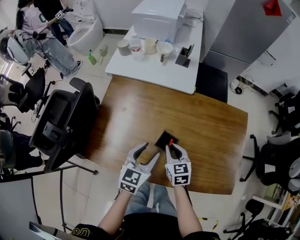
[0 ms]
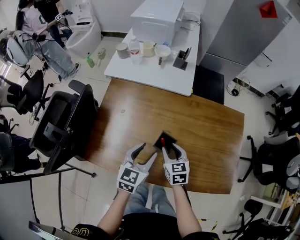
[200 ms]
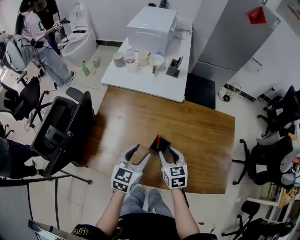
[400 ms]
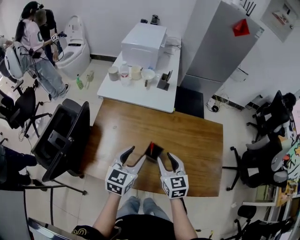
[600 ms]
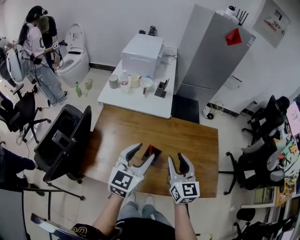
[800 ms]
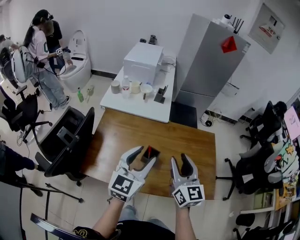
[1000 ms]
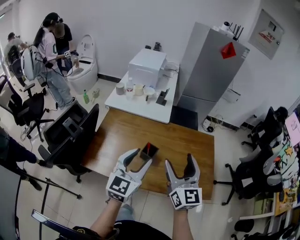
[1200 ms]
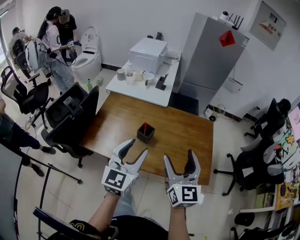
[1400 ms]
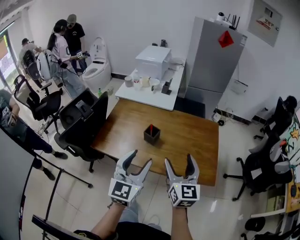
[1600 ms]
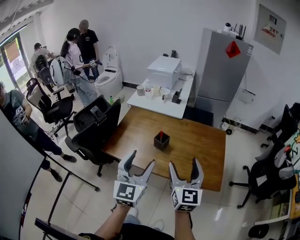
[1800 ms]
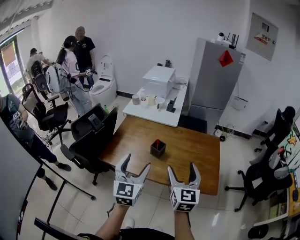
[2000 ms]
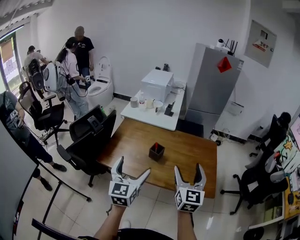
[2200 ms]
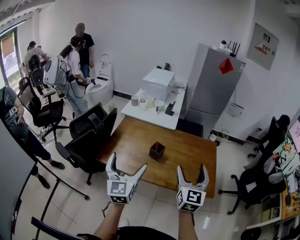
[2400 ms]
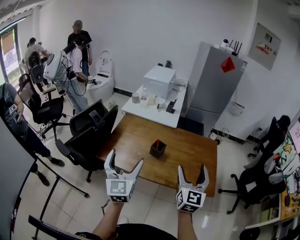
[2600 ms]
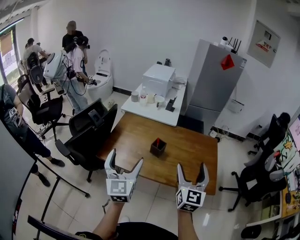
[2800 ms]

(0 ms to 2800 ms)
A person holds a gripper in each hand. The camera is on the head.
0 ms - 1400 ms: Both grippers move upward and backward, roughly 35 cm. The right gripper angles its fingers upward, by roughly 40 degrees, and opens its fingers; the left gripper changes its angle by some 30 degrees.
1400 ms - 2800 ms: The right gripper moves backward, roughly 5 cm. The left gripper moves to the left and backward, about 15 cm, rotates about 20 degrees, and opens its fingers.

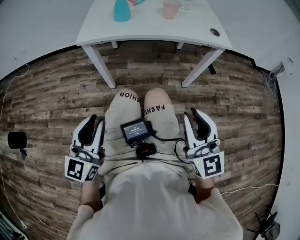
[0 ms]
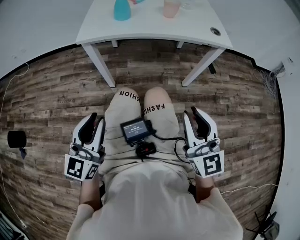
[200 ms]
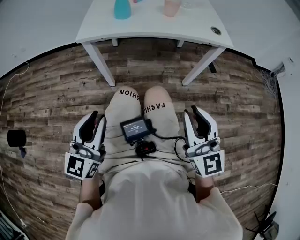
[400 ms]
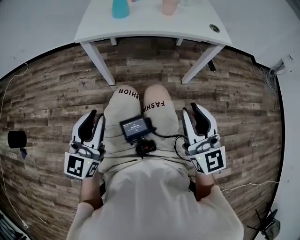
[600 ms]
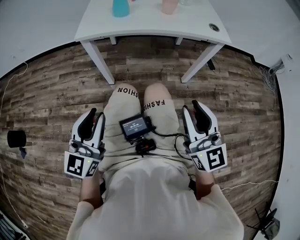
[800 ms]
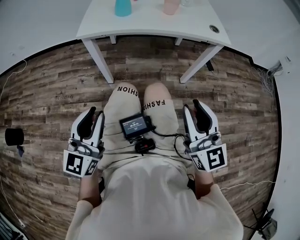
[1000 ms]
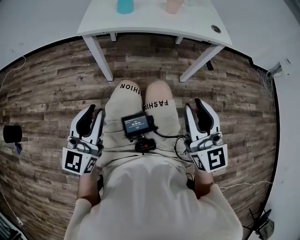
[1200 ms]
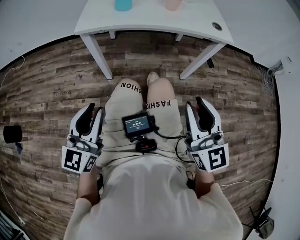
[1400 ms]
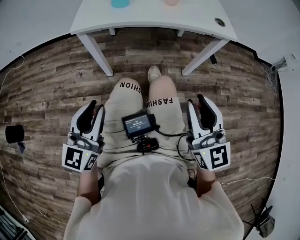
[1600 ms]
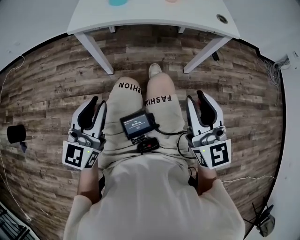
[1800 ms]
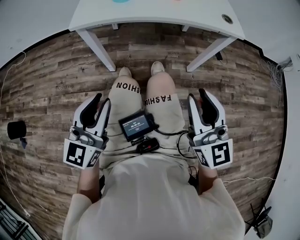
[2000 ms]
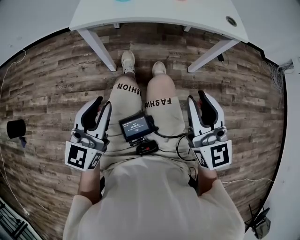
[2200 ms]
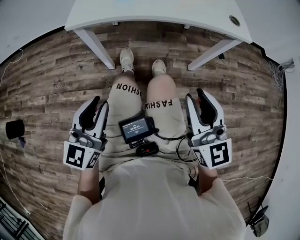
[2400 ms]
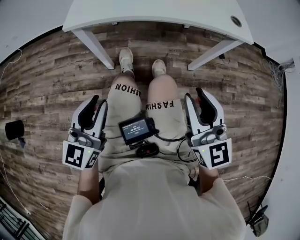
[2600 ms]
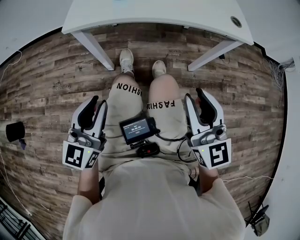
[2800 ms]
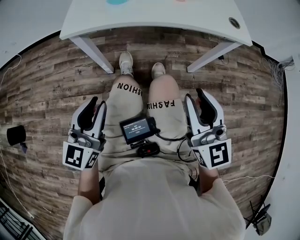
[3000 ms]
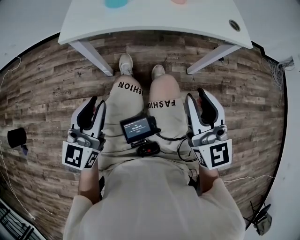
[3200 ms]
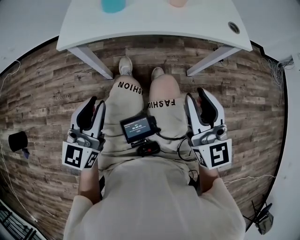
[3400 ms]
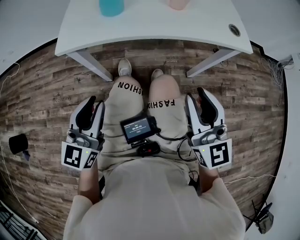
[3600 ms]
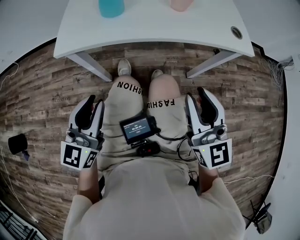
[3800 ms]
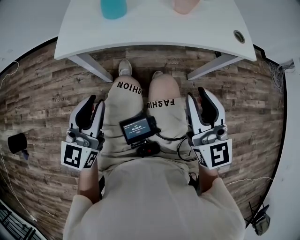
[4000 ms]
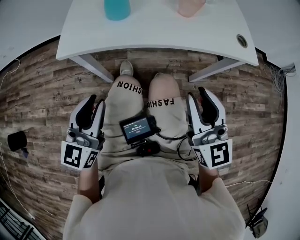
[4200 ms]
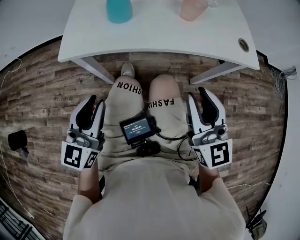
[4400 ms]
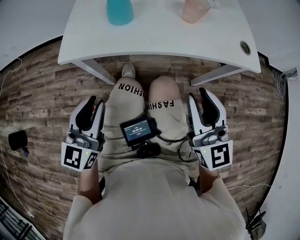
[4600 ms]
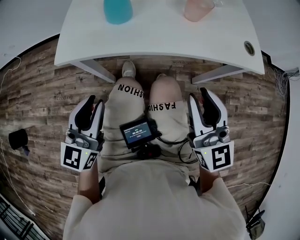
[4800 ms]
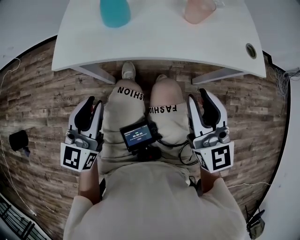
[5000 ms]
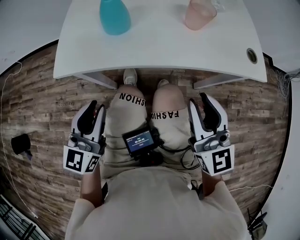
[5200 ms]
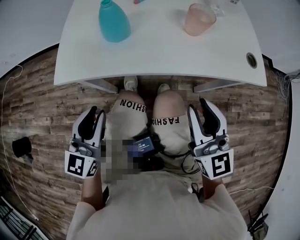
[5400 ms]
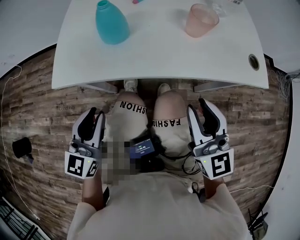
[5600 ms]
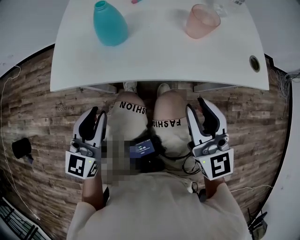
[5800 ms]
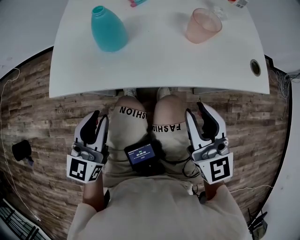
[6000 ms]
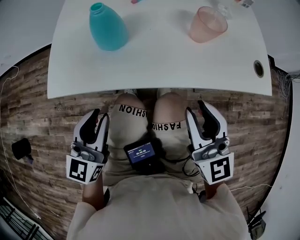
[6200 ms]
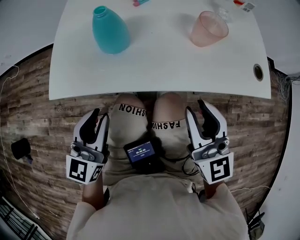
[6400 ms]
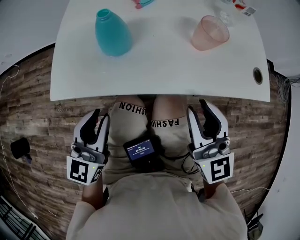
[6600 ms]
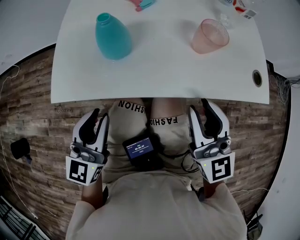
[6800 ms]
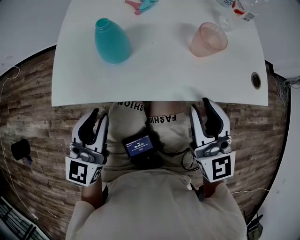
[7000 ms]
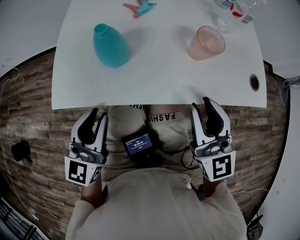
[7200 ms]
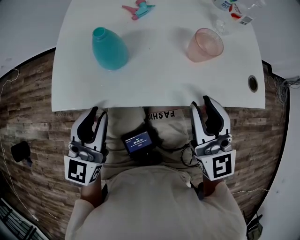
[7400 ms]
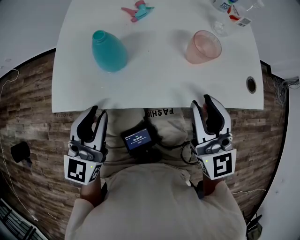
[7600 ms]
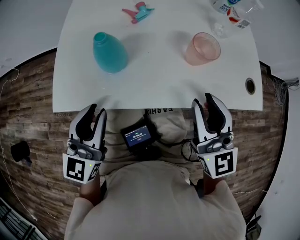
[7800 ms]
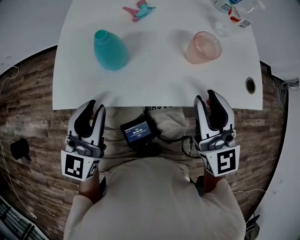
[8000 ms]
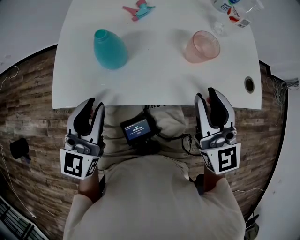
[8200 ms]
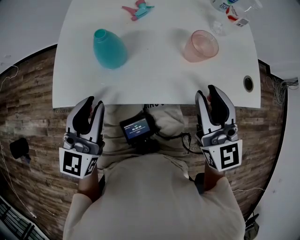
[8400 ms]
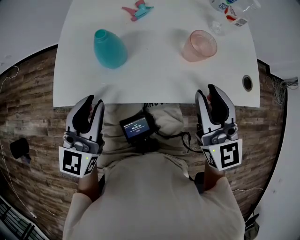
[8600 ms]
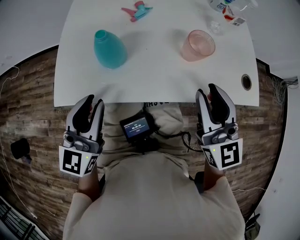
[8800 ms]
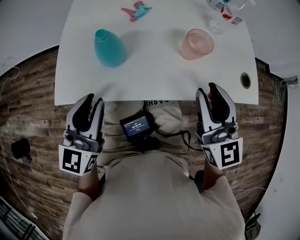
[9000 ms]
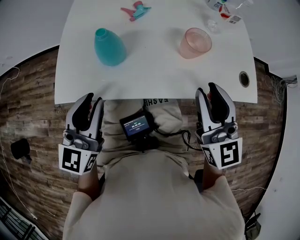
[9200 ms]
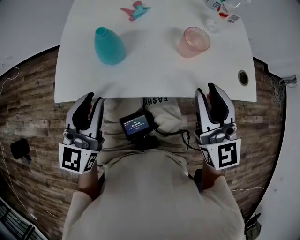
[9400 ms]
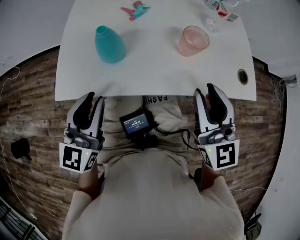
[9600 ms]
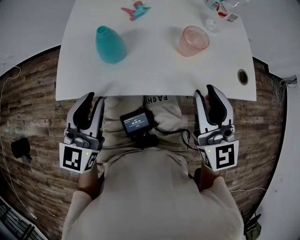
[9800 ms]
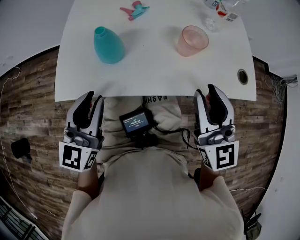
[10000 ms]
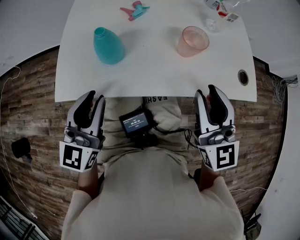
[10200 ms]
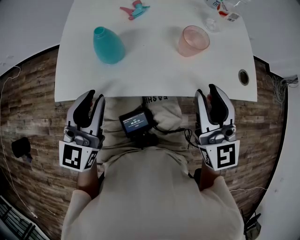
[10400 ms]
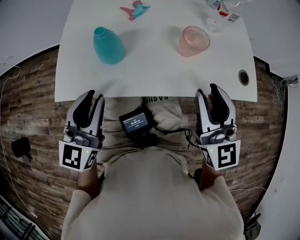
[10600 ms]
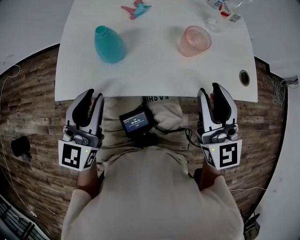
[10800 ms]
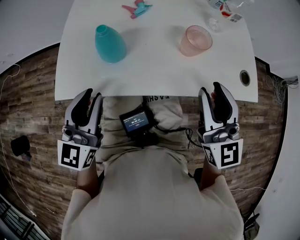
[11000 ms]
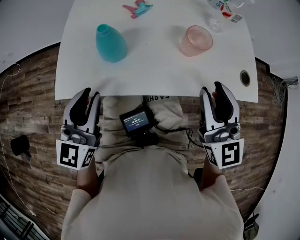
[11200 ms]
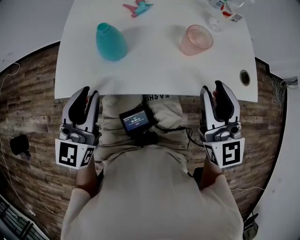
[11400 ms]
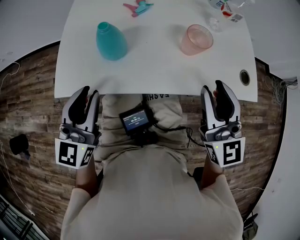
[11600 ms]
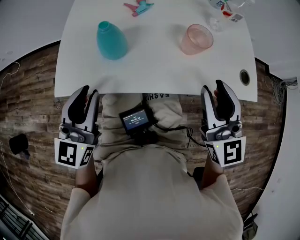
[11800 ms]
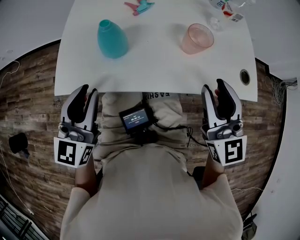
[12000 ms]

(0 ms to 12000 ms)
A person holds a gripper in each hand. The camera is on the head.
0 ms - 1600 ms: The grippers make only small movements.
1600 ms - 3000 ms: The two grippers go some 10 cm forward.
3000 ms - 4400 ms: The two grippers go approximately 15 cm forward.
4400 ms - 6000 ms: The two grippers go approximately 10 cm forward.
6000 ms - 7600 ms: Both grippers travel together forward, some 5 cm.
7600 ms - 12000 ms: The grippers move only a little.

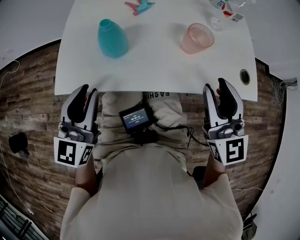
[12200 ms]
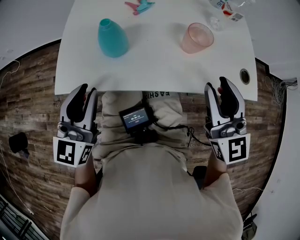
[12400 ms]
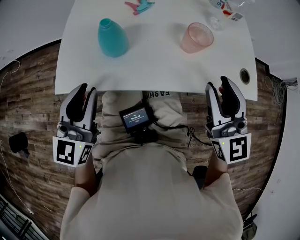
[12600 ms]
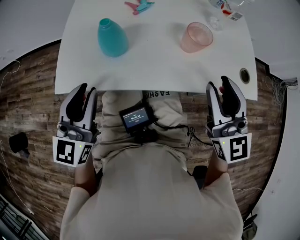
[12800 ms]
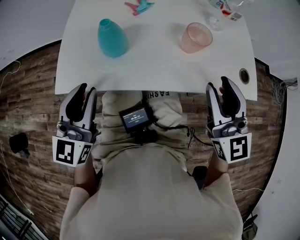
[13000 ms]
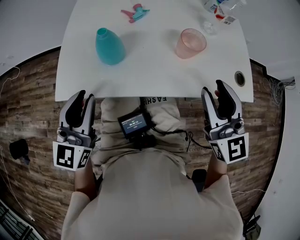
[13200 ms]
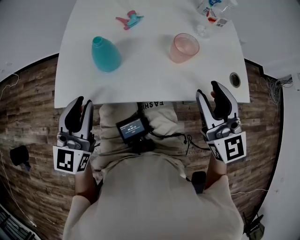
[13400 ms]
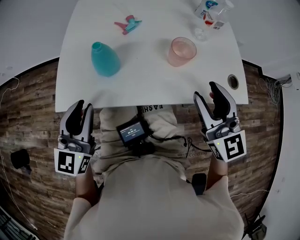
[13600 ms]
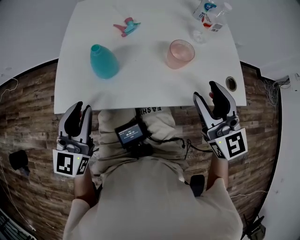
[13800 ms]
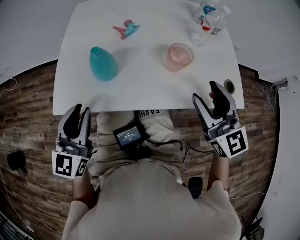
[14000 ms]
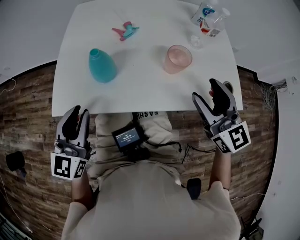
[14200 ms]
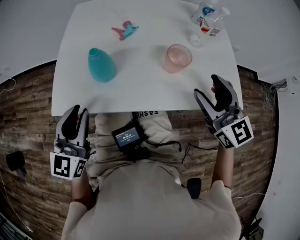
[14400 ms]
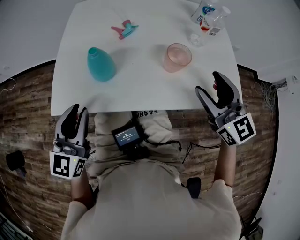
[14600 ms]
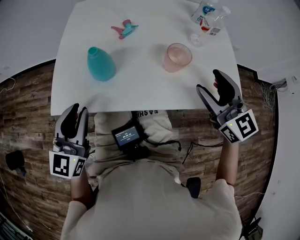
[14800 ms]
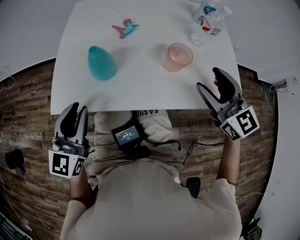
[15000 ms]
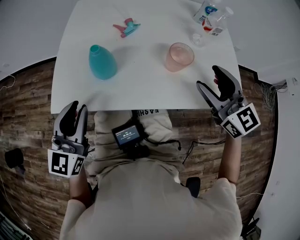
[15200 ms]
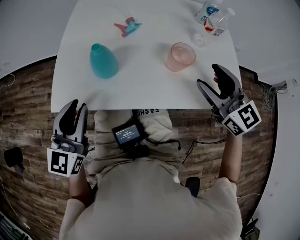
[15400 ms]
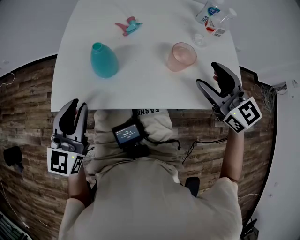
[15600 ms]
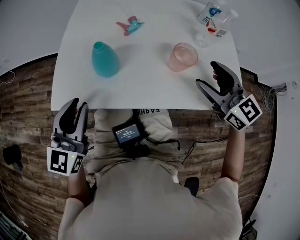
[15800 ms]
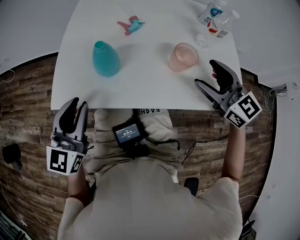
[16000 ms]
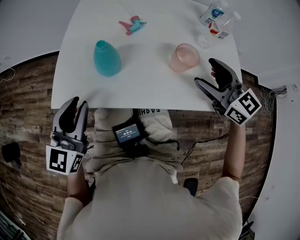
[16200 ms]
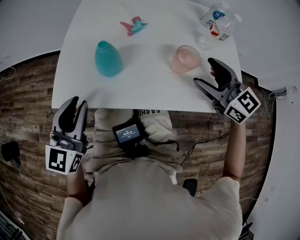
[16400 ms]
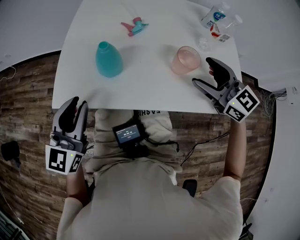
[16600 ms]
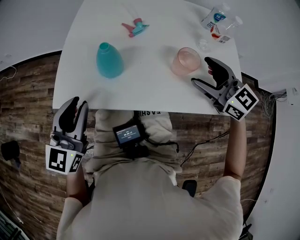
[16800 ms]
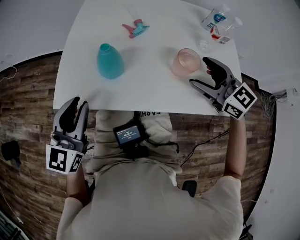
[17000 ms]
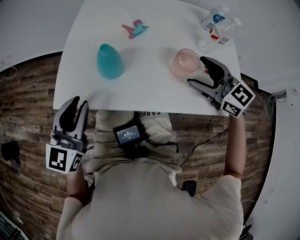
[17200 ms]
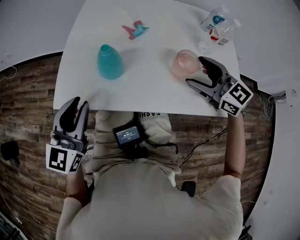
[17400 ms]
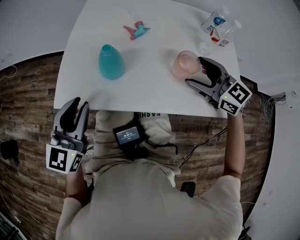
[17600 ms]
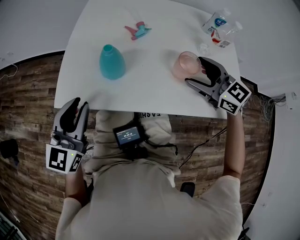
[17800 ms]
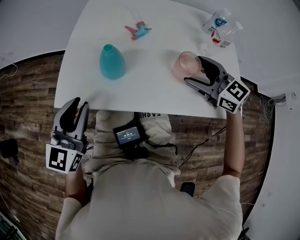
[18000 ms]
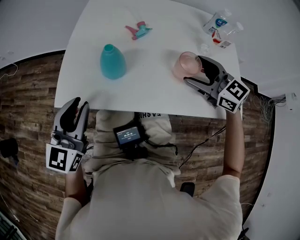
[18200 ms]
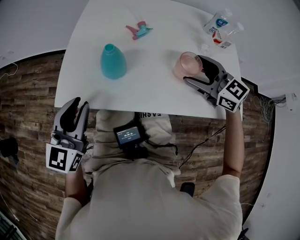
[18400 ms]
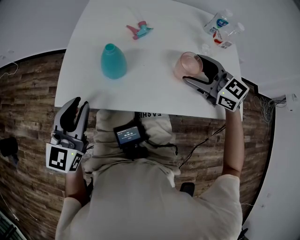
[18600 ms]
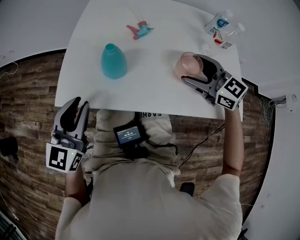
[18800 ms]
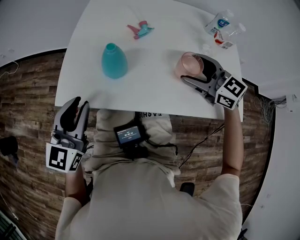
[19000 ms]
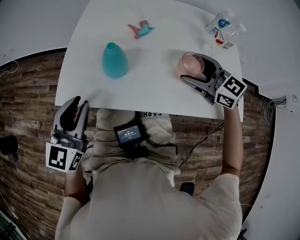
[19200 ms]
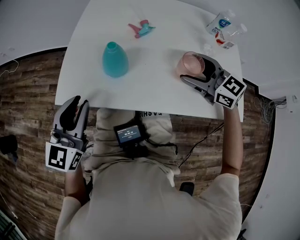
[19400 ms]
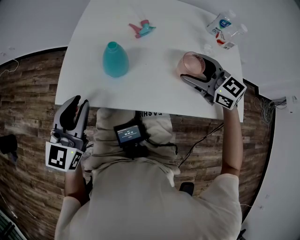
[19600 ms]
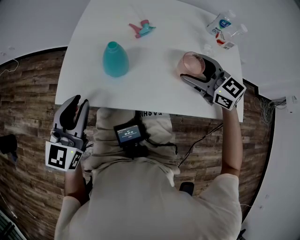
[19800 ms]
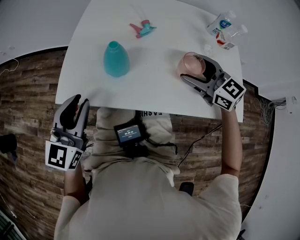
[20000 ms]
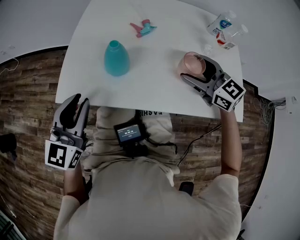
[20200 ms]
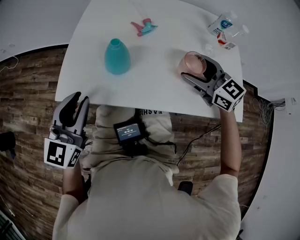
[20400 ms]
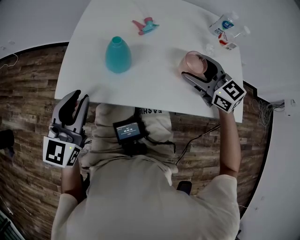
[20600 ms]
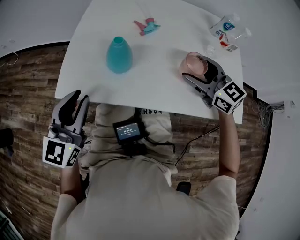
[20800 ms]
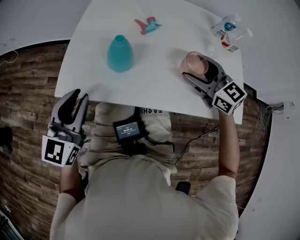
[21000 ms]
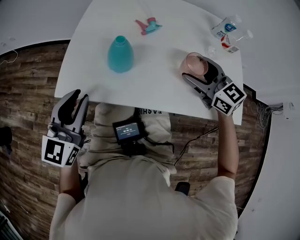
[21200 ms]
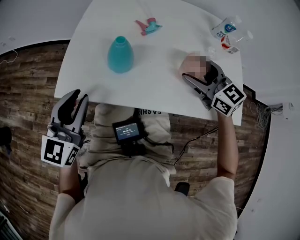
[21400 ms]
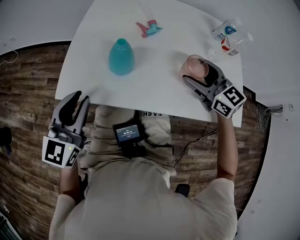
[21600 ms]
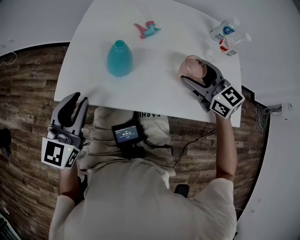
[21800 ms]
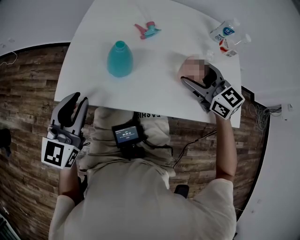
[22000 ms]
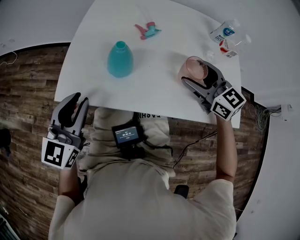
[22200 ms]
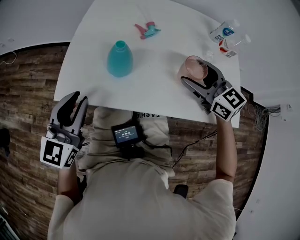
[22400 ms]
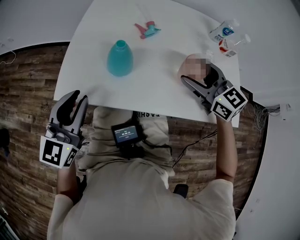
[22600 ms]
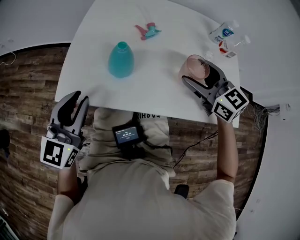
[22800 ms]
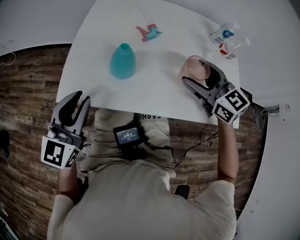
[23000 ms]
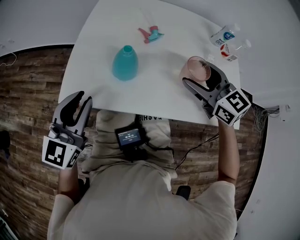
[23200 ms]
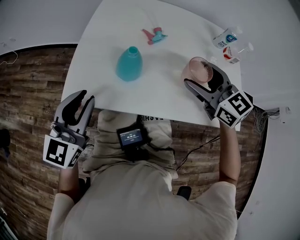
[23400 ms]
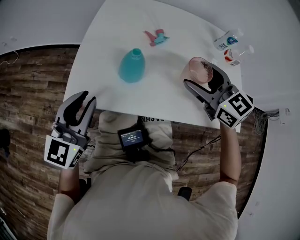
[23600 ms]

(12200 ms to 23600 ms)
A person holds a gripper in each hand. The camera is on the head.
12200 ms - 13600 ms: The grippers move only a little.
13600 ms - 15000 ms: The right gripper travels forward by some 5 cm.
15000 ms - 16400 ms: The grippers move only a little.
16400 ms - 17800 ms: The grippers make only small movements.
17800 ms - 20800 ms: The grippers stay close to where they were, moving slightly.
20800 ms - 22200 ms: Both grippers stay about where they are.
22200 ms - 23600 ms: The right gripper changes place by roughly 5 cm.
